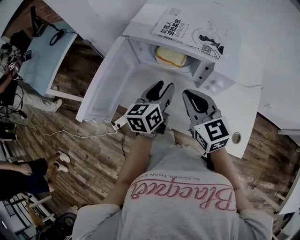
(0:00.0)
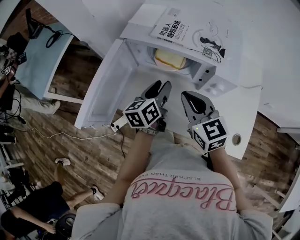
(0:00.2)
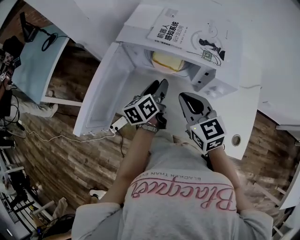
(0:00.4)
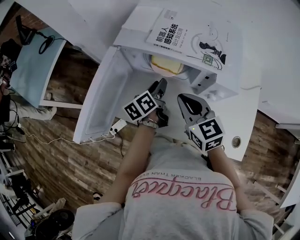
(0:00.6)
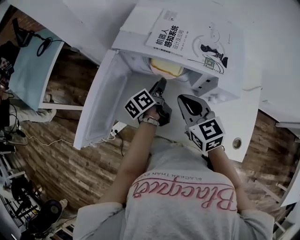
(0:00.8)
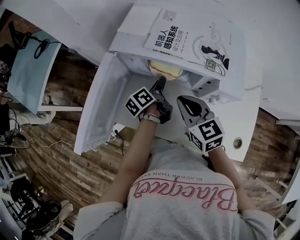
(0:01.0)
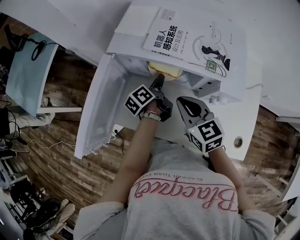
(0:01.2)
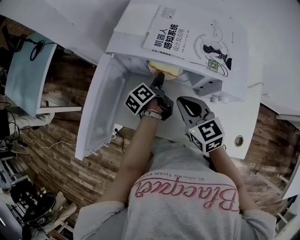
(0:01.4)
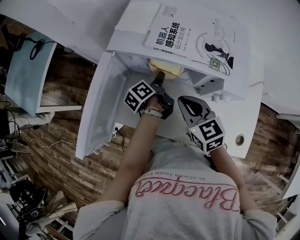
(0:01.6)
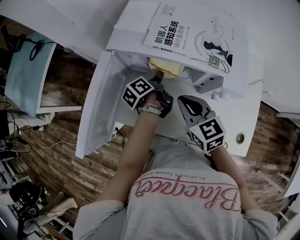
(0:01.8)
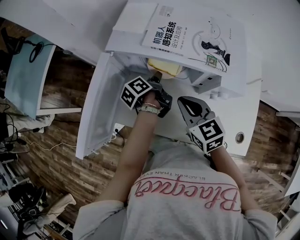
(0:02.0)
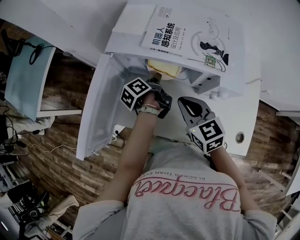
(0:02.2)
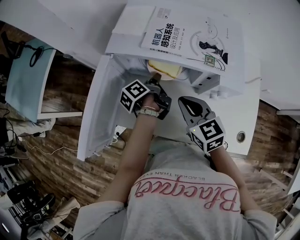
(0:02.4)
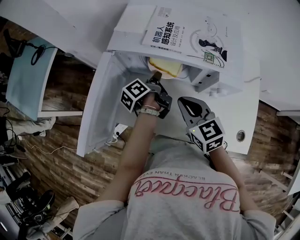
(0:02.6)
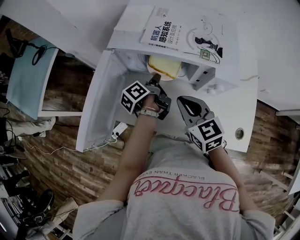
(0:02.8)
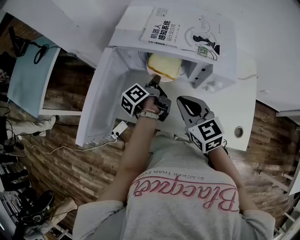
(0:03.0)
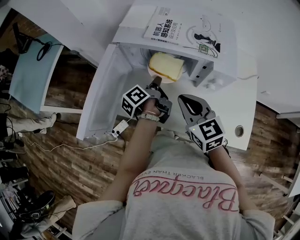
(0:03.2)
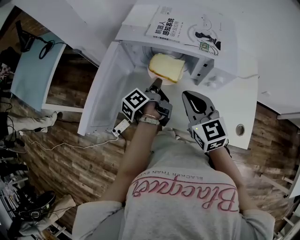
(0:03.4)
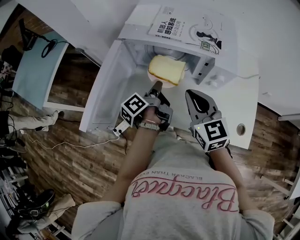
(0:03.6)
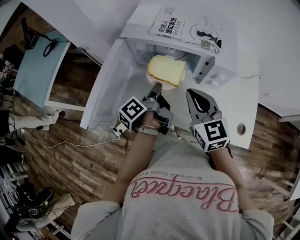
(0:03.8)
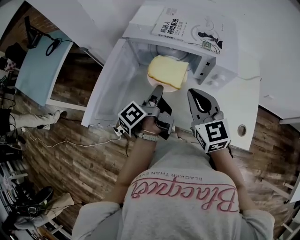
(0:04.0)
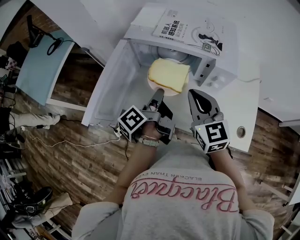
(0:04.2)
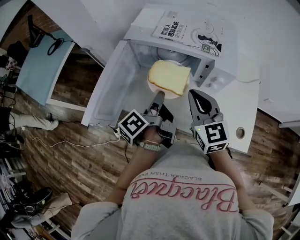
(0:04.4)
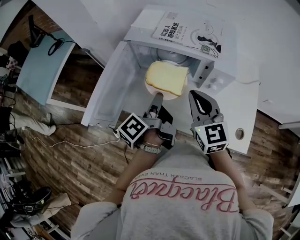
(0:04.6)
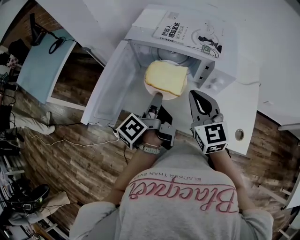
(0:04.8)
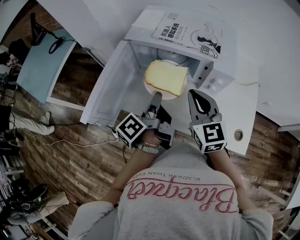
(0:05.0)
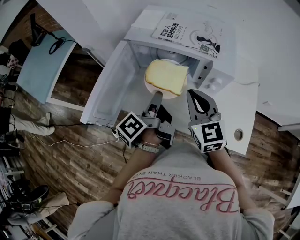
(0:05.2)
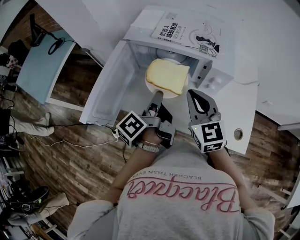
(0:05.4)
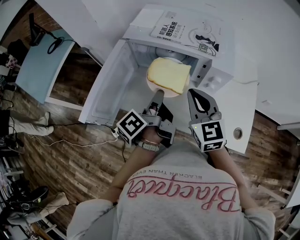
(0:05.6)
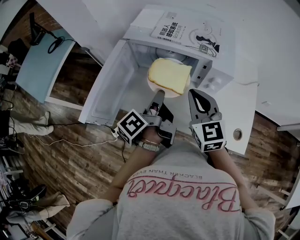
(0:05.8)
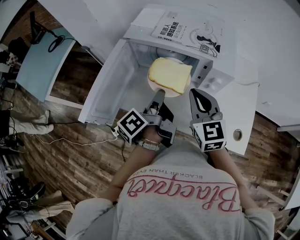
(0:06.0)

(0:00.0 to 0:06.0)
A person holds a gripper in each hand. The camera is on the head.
0:00.0 - 0:01.6: The right gripper goes roughly 10 cm downward and forward. The left gripper is displaced forward and downward by about 20 cm, and rotates around the line of its fingers by about 50 degrees, counterclockwise from behind.
0:01.6 - 0:03.0: The right gripper moves about 5 cm; the left gripper changes place by roughly 5 cm, and closes up.
0:03.0 - 0:04.4: The right gripper travels upward by approximately 5 cm, while the left gripper heads backward and upward, covering roughly 15 cm.
0:04.4 - 0:06.0: The grippers stay close to where they were, moving slightly.

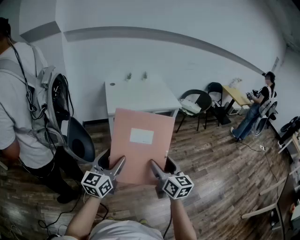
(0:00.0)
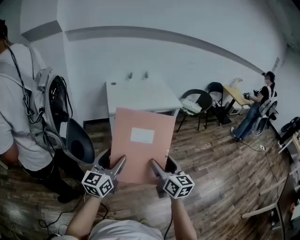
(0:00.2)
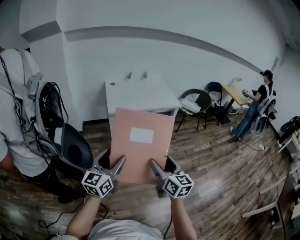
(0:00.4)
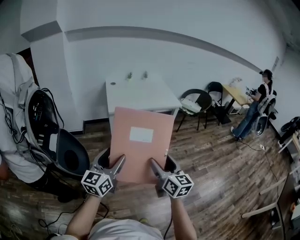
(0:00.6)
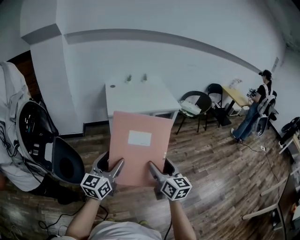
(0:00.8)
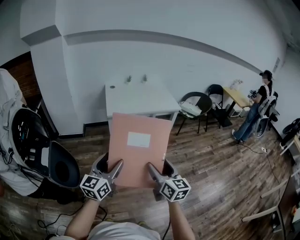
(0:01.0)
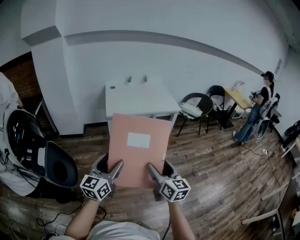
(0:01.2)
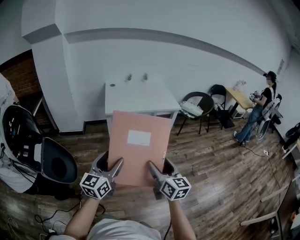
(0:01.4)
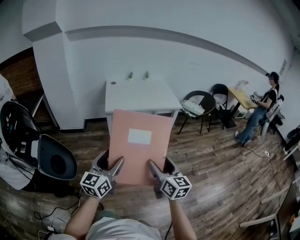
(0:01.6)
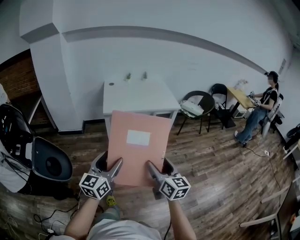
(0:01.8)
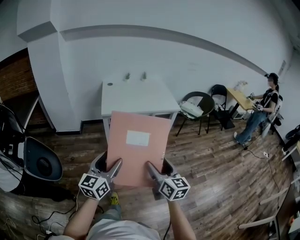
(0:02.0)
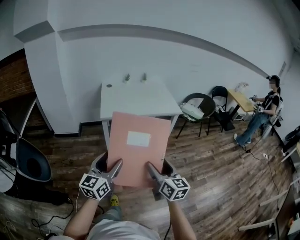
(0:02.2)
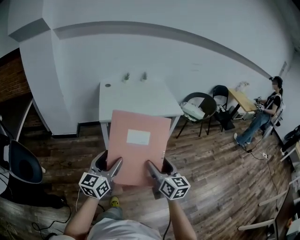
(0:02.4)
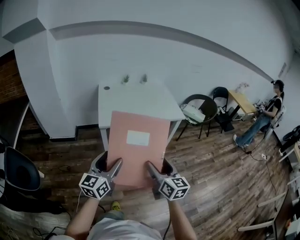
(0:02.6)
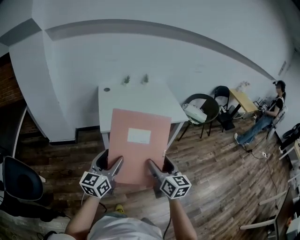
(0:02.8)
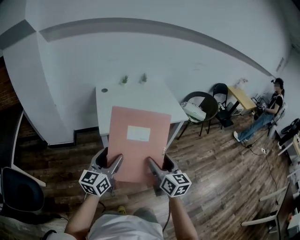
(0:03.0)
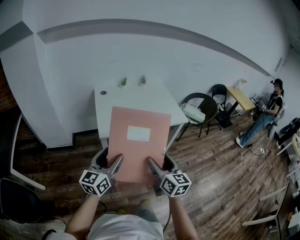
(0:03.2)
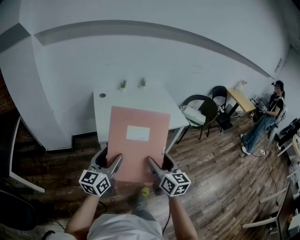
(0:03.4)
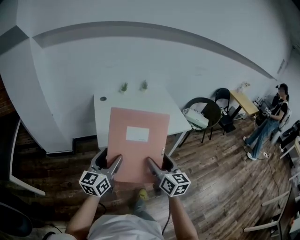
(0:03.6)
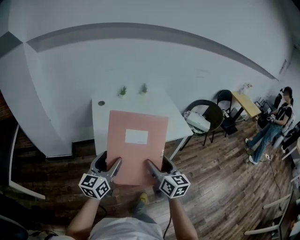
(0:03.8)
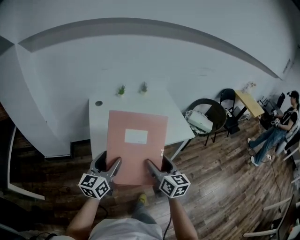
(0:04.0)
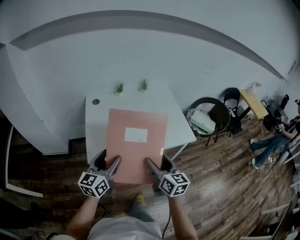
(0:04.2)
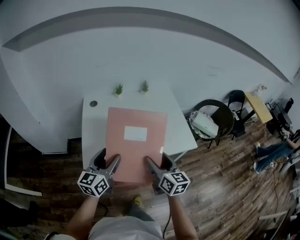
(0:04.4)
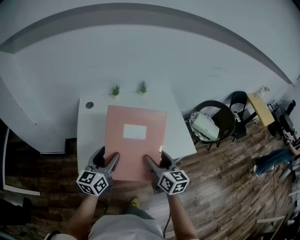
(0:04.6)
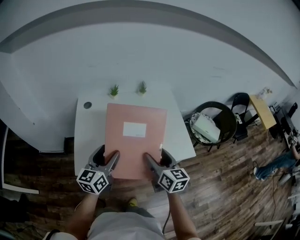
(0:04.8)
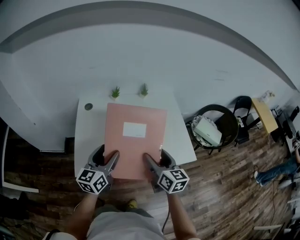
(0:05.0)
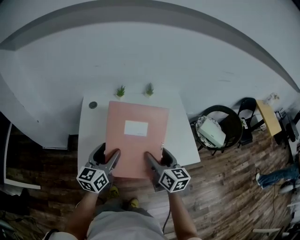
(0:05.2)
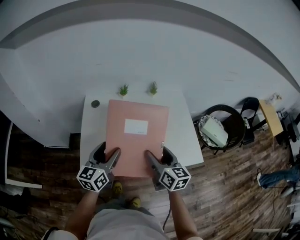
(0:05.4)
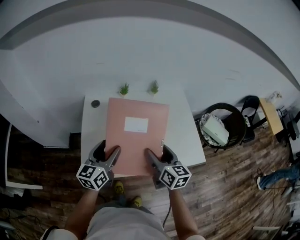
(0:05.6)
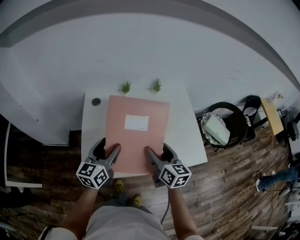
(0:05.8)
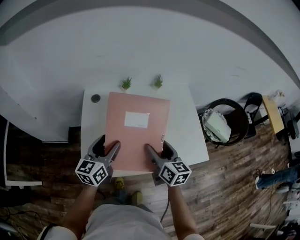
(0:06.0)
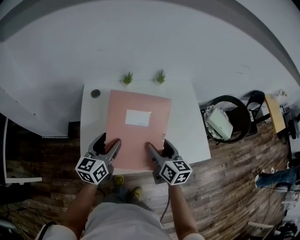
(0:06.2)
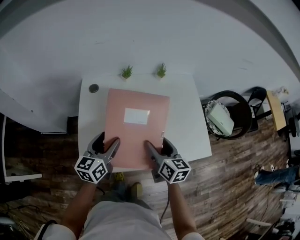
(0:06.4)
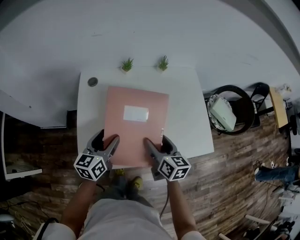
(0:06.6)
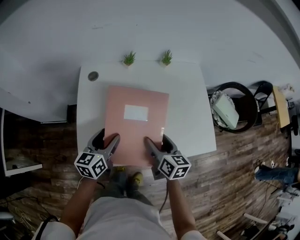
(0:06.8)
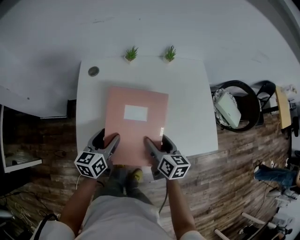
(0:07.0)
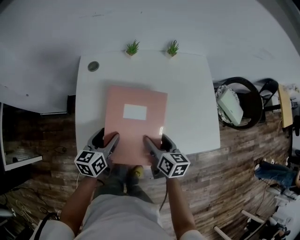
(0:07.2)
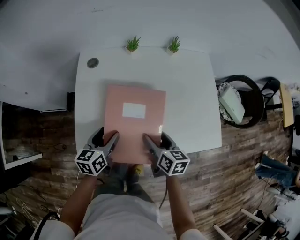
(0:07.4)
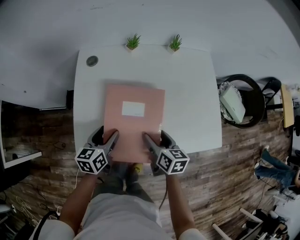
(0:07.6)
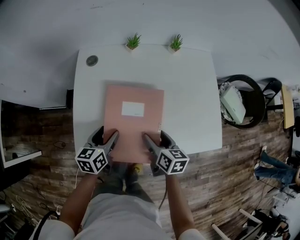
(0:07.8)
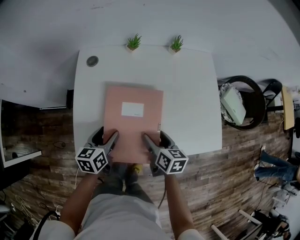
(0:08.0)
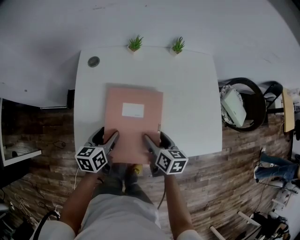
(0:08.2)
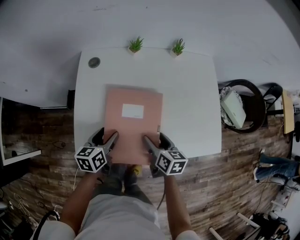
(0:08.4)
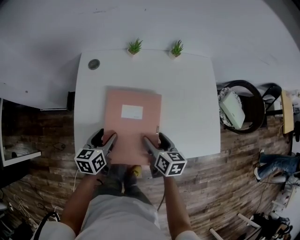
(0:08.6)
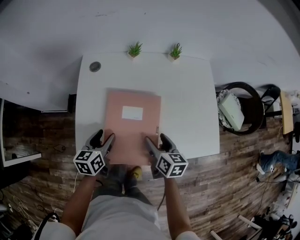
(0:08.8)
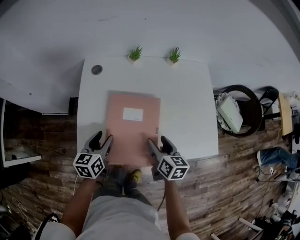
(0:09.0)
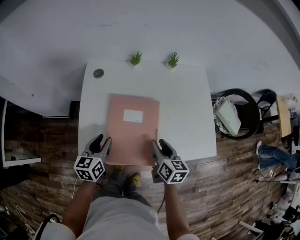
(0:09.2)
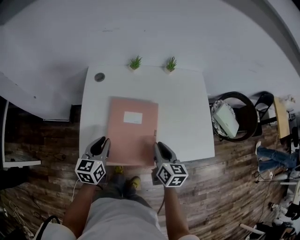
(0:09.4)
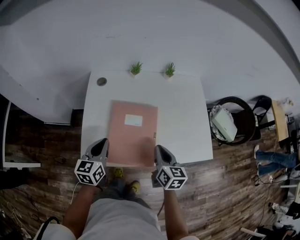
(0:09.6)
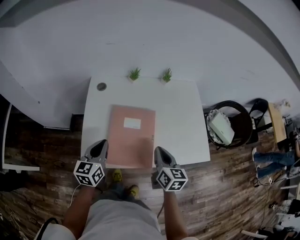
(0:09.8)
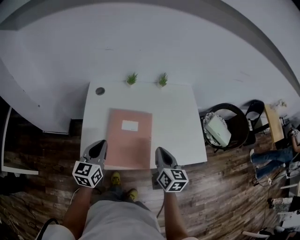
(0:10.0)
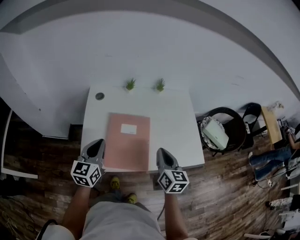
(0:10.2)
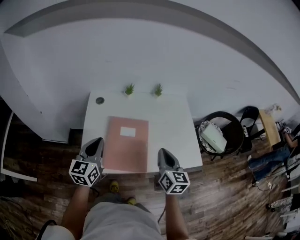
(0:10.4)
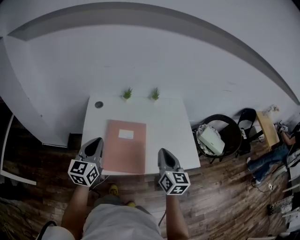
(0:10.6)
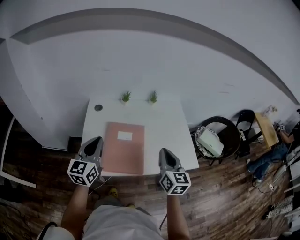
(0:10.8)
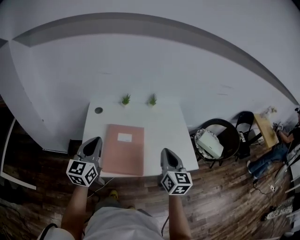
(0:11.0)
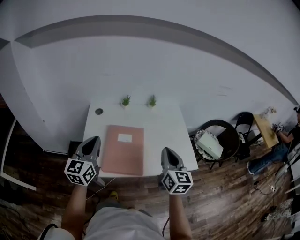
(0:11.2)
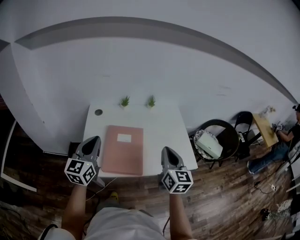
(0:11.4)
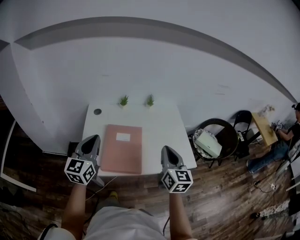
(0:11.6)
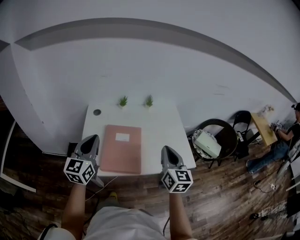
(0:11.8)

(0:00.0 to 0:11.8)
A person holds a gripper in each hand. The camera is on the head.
0:00.0 - 0:01.4: Both grippers move to the right, approximately 5 cm. The right gripper travels forward and back again, roughly 10 cm each way. The left gripper moves approximately 10 cm forward and comes back.
0:01.4 - 0:03.0: Both grippers move forward, some 35 cm.
0:03.0 - 0:04.4: The two grippers go about 35 cm forward.
0:04.4 - 0:06.0: Both grippers travel together forward, some 20 cm.
0:06.0 - 0:07.4: Both grippers move downward, about 15 cm. The left gripper rotates approximately 20 degrees. The right gripper swivels approximately 20 degrees.
0:07.4 - 0:08.8: The grippers move only a little.
0:08.8 - 0:10.4: The right gripper moves upward and backward, approximately 20 cm, changes its angle by roughly 30 degrees, and closes up. Meanwhile the left gripper shifts roughly 20 cm upward, rotates about 30 degrees, and closes up.
0:10.4 - 0:11.8: The two grippers go about 10 cm upward.

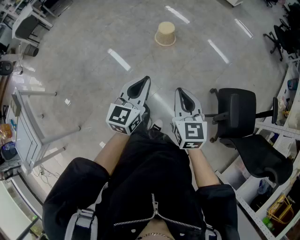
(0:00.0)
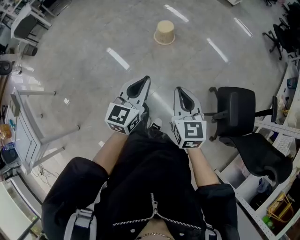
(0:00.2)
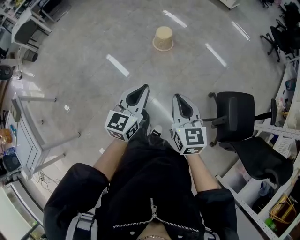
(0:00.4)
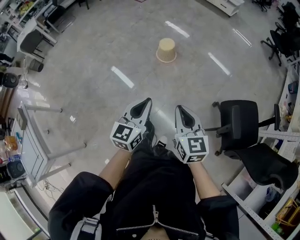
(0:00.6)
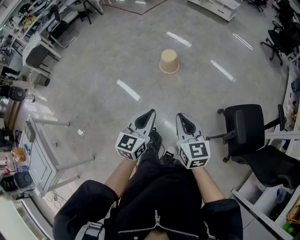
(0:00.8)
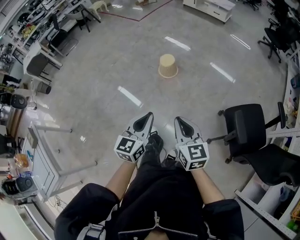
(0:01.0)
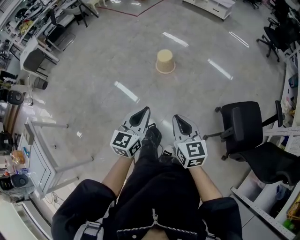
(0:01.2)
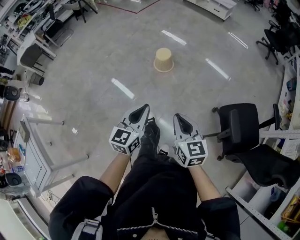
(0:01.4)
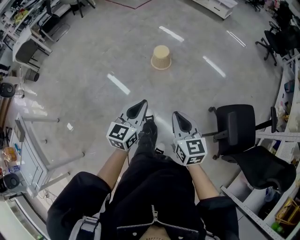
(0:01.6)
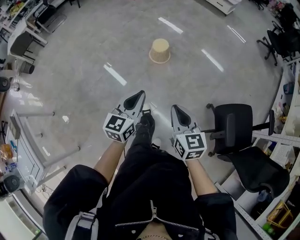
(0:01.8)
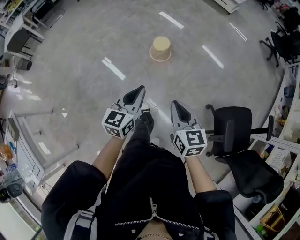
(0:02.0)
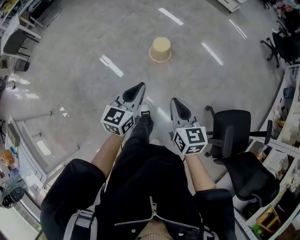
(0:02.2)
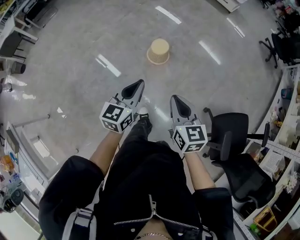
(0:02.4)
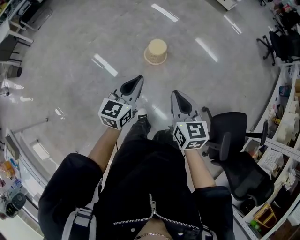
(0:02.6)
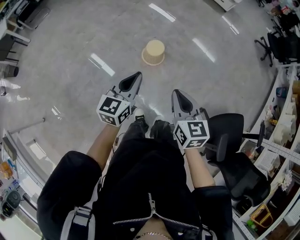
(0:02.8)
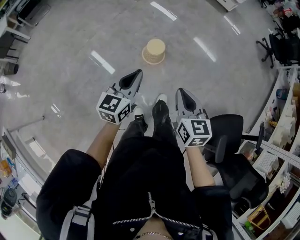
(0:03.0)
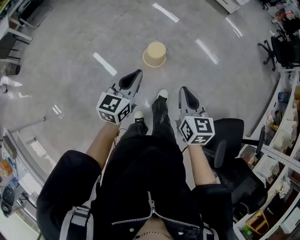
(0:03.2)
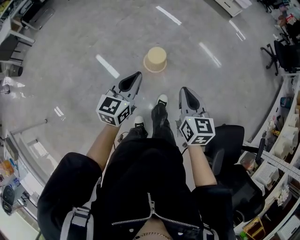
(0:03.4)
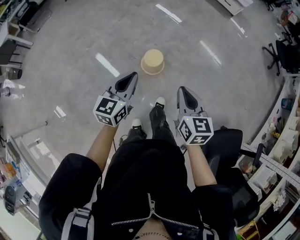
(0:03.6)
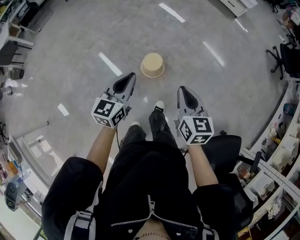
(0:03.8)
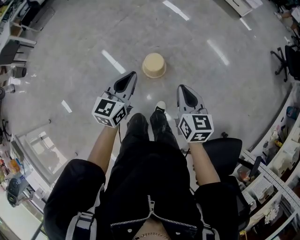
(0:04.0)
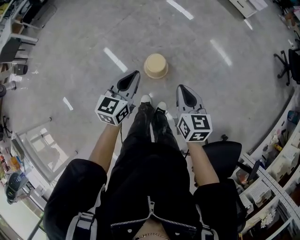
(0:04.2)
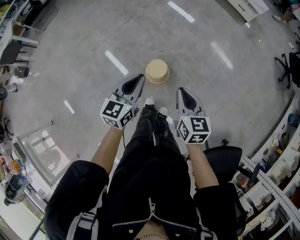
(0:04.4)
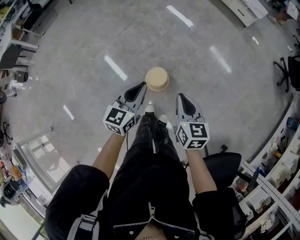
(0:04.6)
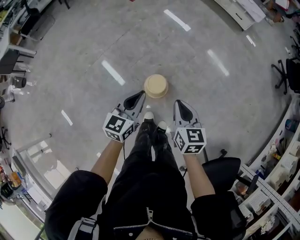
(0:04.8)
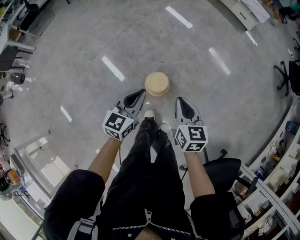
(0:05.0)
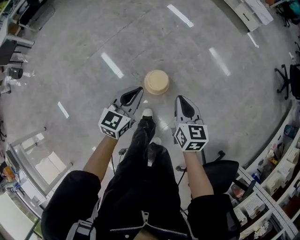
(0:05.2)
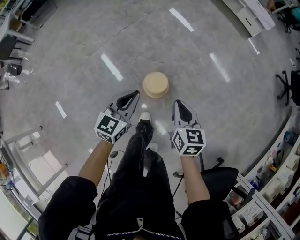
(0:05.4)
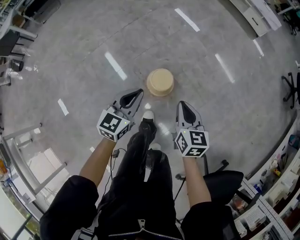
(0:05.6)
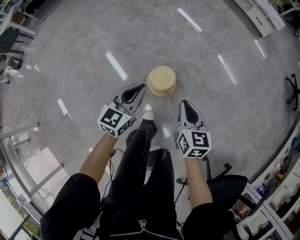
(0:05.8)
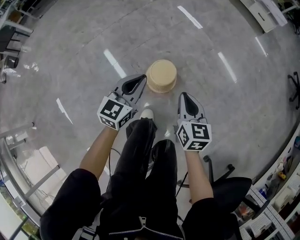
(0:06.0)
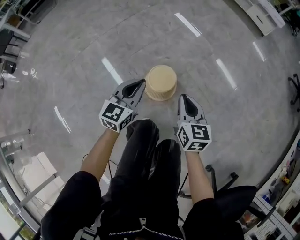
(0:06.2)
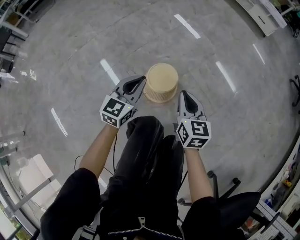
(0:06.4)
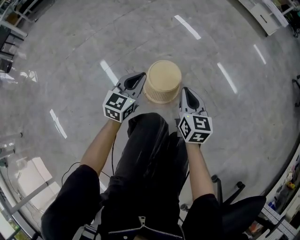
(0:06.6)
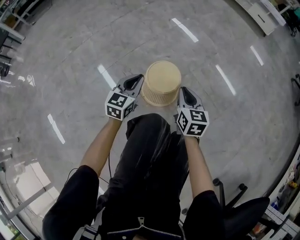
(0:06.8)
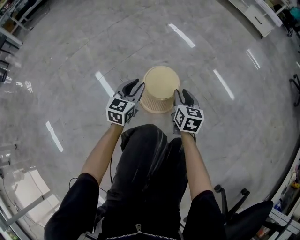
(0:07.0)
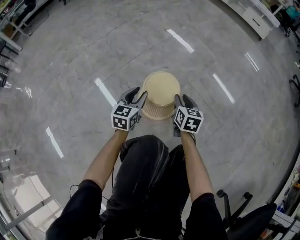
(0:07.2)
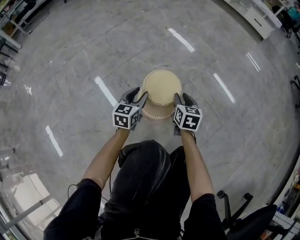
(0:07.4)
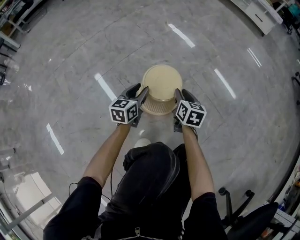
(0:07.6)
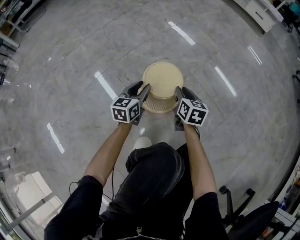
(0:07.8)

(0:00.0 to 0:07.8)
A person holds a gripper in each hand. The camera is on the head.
0:00.0 - 0:01.6: The left gripper shifts by some 5 cm.
0:01.6 - 0:03.2: The grippers both shift forward by approximately 35 cm.
0:03.2 - 0:04.6: The two grippers go about 30 cm forward.
0:04.6 - 0:06.2: The two grippers go approximately 40 cm downward.
0:06.2 - 0:07.8: The grippers both shift downward by roughly 35 cm. The left gripper opens its fingers. The right gripper opens its fingers.
